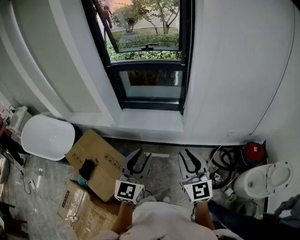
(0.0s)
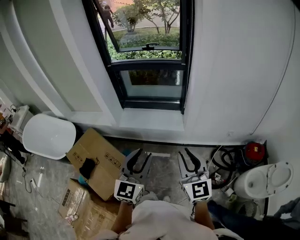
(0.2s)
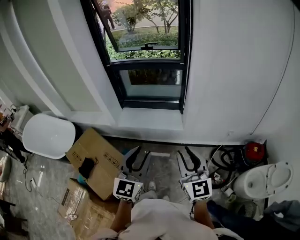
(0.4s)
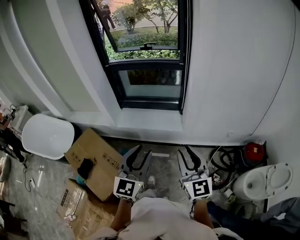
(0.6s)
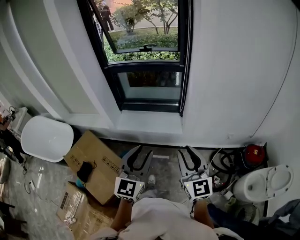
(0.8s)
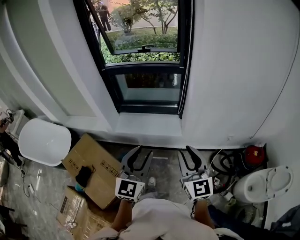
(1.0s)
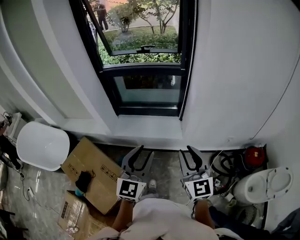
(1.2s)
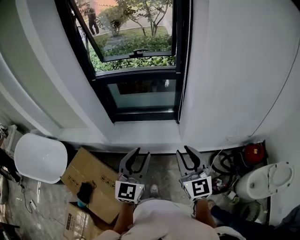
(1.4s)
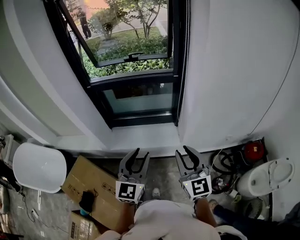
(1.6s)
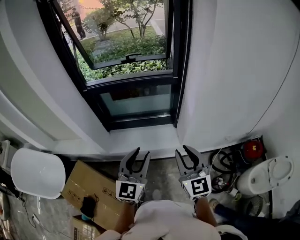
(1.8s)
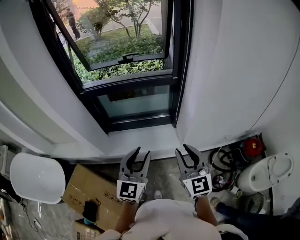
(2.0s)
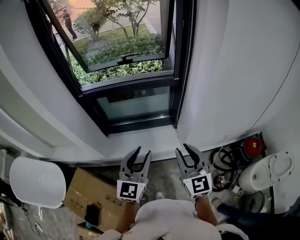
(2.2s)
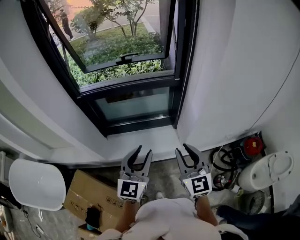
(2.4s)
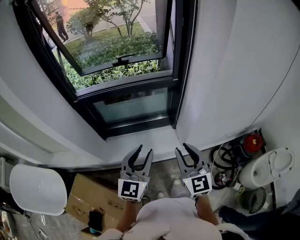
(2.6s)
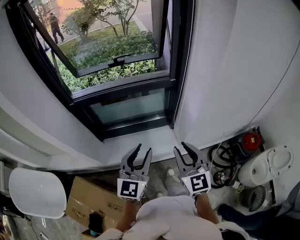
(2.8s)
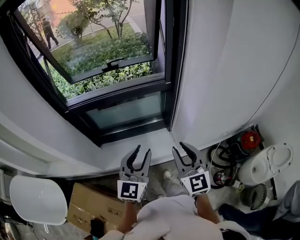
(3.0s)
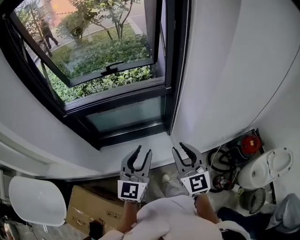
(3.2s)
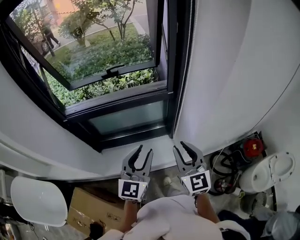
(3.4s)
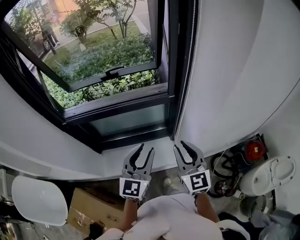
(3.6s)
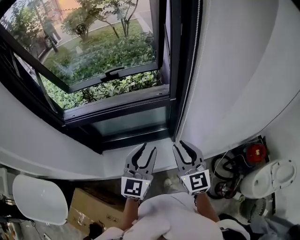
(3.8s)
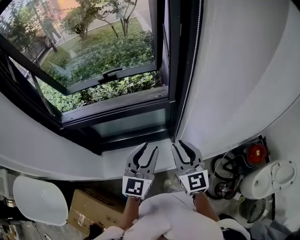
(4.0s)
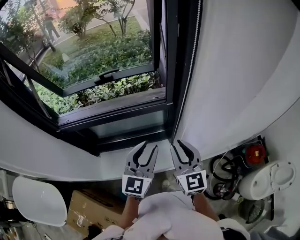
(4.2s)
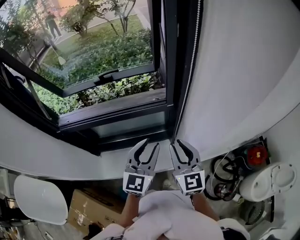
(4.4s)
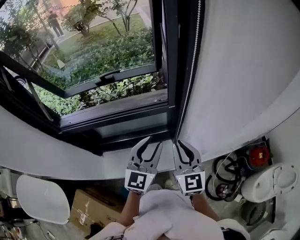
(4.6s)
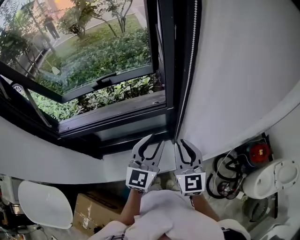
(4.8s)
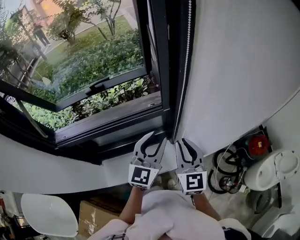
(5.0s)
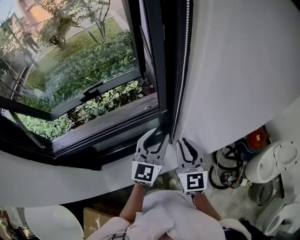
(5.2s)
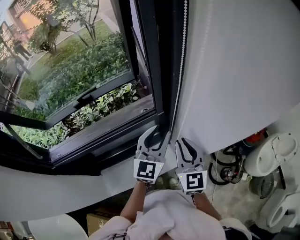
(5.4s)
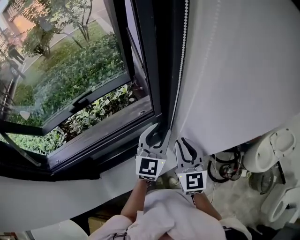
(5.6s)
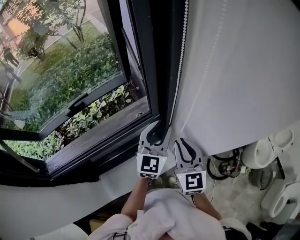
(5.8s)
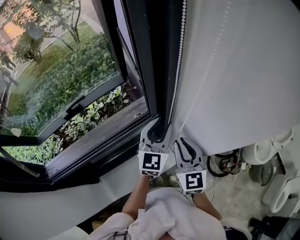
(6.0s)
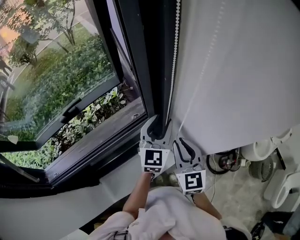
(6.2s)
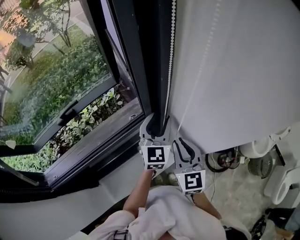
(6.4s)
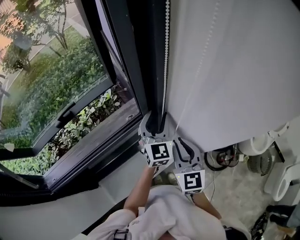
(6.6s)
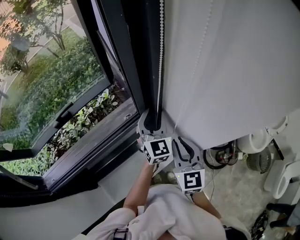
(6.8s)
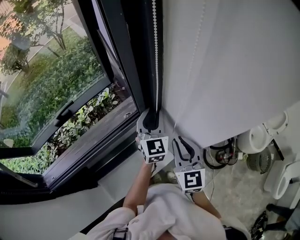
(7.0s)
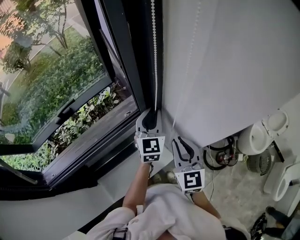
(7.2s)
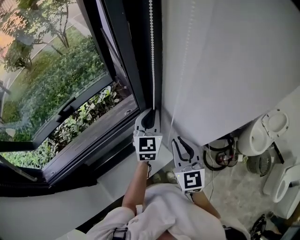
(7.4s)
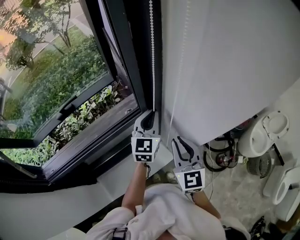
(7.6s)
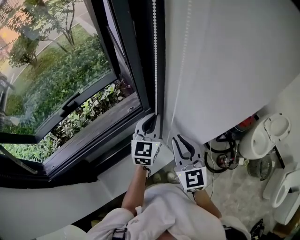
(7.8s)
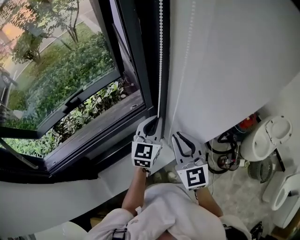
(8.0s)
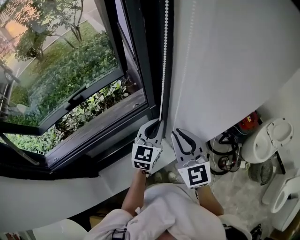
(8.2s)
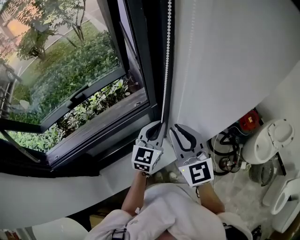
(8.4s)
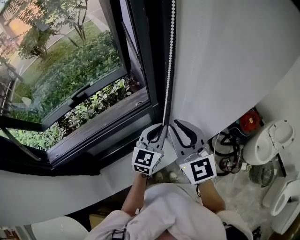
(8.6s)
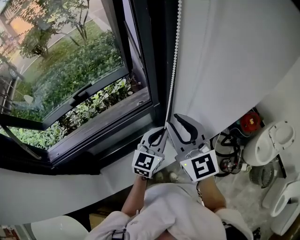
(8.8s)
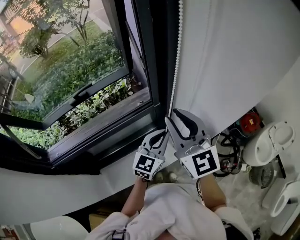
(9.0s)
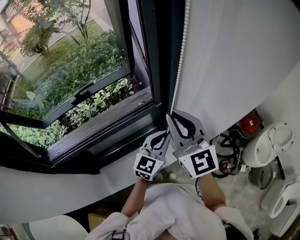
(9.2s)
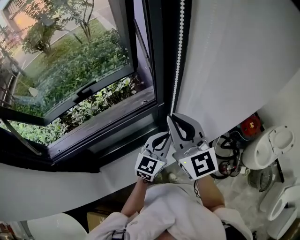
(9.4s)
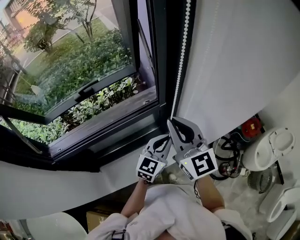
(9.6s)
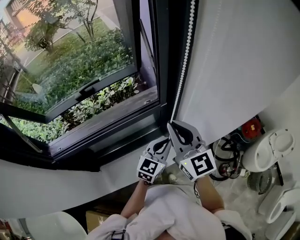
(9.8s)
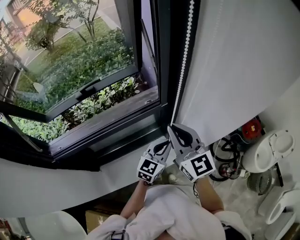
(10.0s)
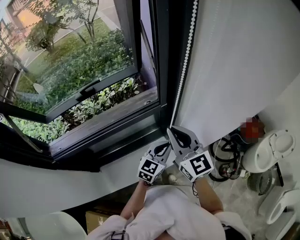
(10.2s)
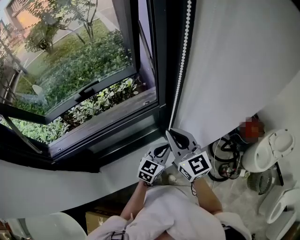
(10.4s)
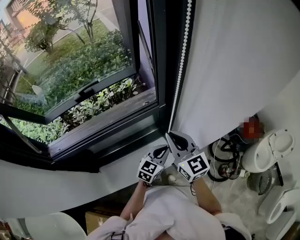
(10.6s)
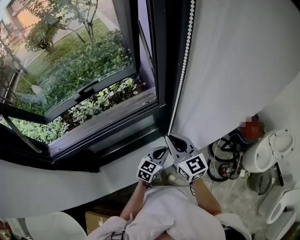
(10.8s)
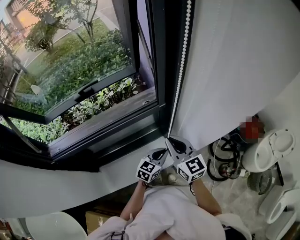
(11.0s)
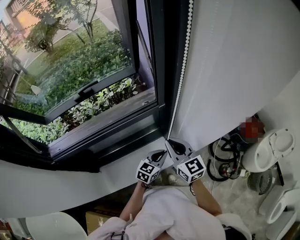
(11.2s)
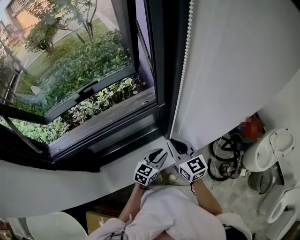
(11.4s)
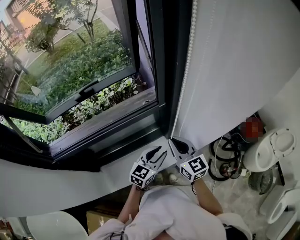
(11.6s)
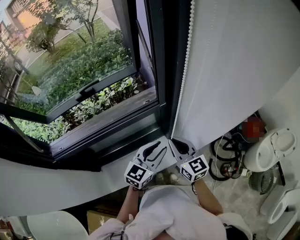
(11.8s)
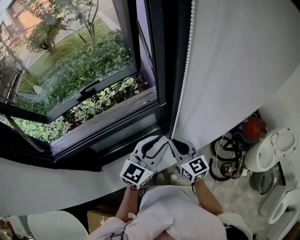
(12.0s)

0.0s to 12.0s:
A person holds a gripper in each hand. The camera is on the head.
0.0s to 1.6s: The two grippers go roughly 20 cm forward.
1.6s to 3.0s: Both grippers travel together forward, about 15 cm.
3.0s to 4.4s: The grippers both shift forward by some 20 cm.
4.4s to 6.0s: The left gripper shifts approximately 15 cm forward, and turns by some 20 degrees, while the right gripper travels forward by some 5 cm, and turns by roughly 30 degrees.
6.0s to 7.6s: The left gripper closes its fingers.
7.6s to 9.0s: The left gripper is displaced backward by approximately 10 cm; the right gripper heads upward and to the left, covering roughly 15 cm, and rotates some 20 degrees.
9.0s to 10.4s: Both grippers move downward, some 10 cm. The right gripper closes its fingers.
10.4s to 12.0s: The left gripper is displaced upward by approximately 15 cm, and opens up. Meanwhile the right gripper heads downward, covering about 10 cm.

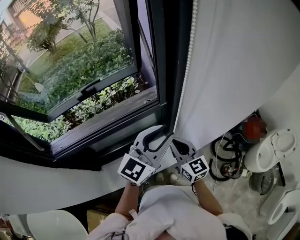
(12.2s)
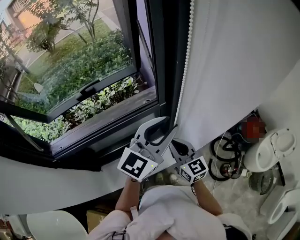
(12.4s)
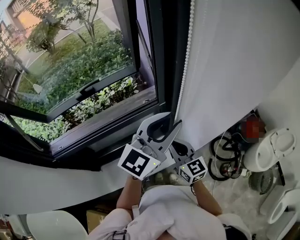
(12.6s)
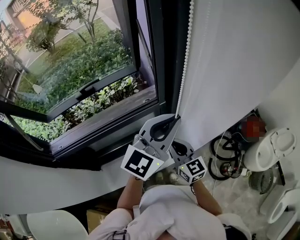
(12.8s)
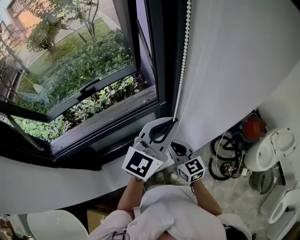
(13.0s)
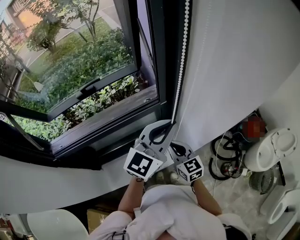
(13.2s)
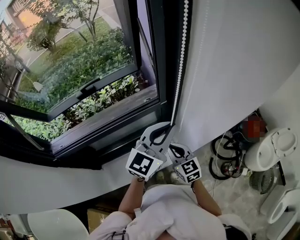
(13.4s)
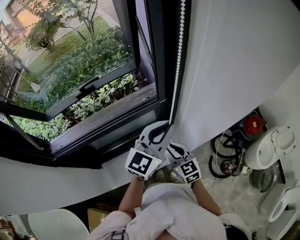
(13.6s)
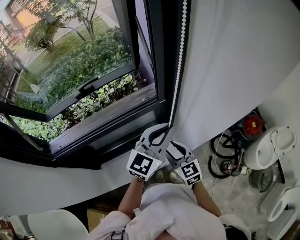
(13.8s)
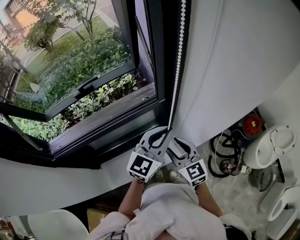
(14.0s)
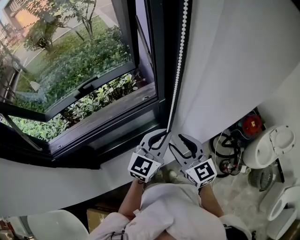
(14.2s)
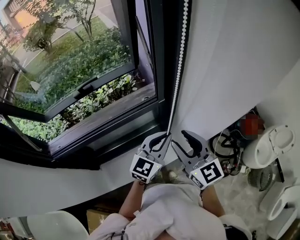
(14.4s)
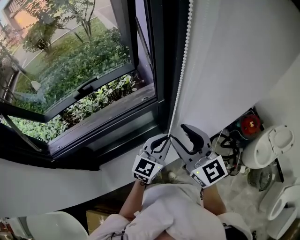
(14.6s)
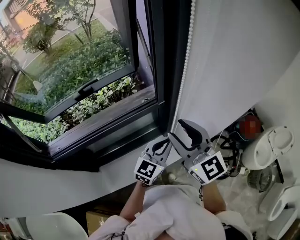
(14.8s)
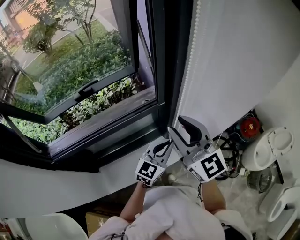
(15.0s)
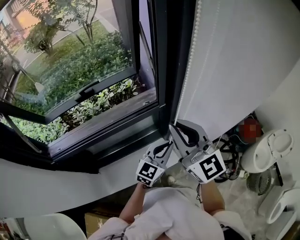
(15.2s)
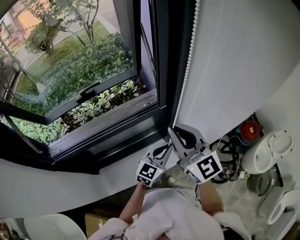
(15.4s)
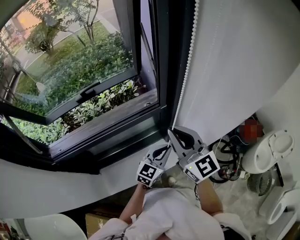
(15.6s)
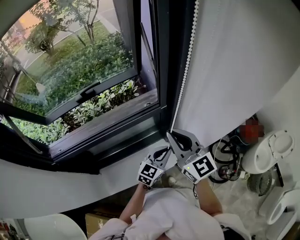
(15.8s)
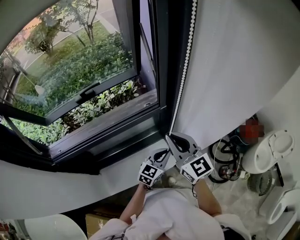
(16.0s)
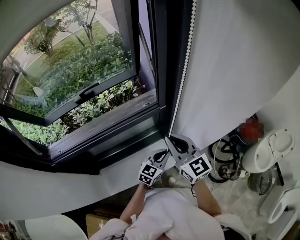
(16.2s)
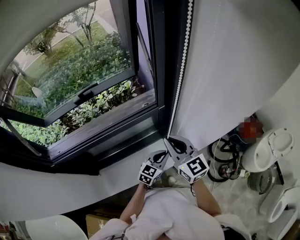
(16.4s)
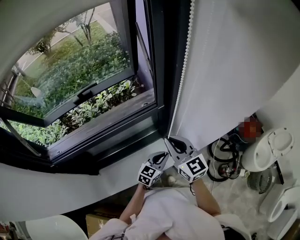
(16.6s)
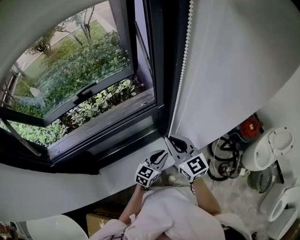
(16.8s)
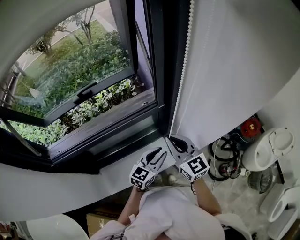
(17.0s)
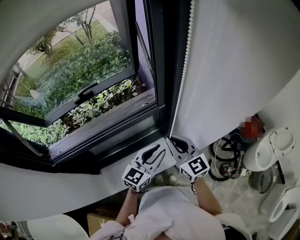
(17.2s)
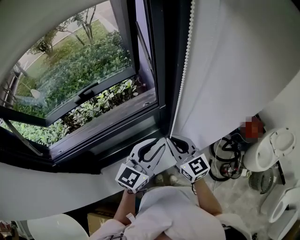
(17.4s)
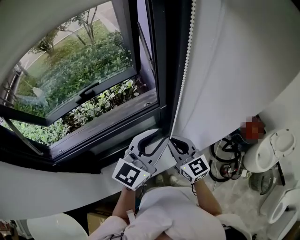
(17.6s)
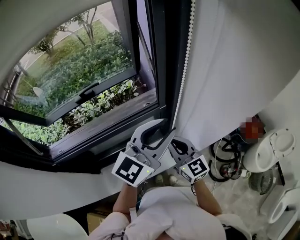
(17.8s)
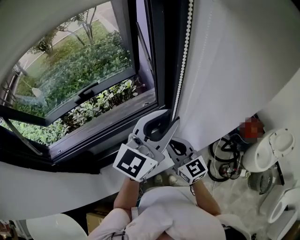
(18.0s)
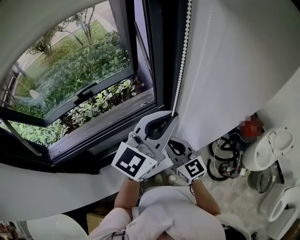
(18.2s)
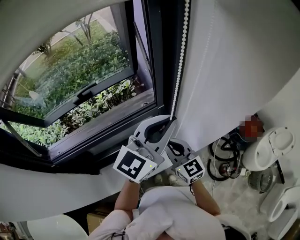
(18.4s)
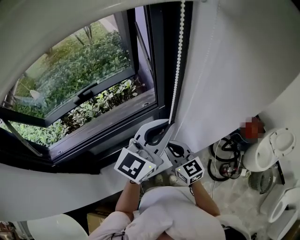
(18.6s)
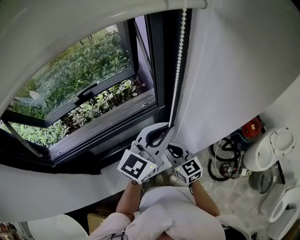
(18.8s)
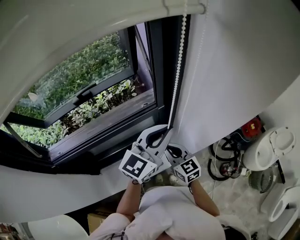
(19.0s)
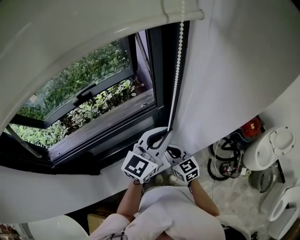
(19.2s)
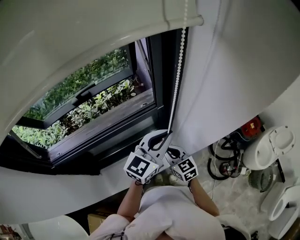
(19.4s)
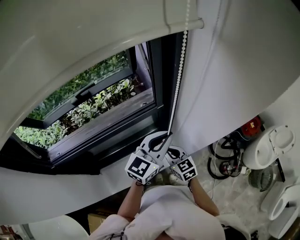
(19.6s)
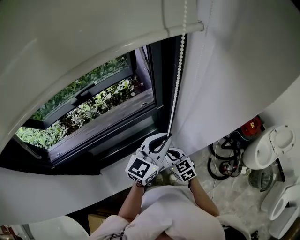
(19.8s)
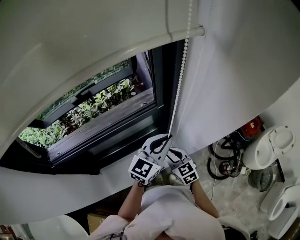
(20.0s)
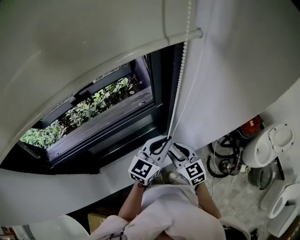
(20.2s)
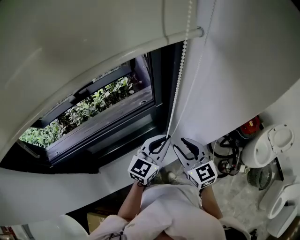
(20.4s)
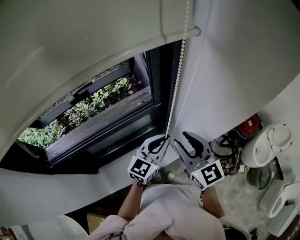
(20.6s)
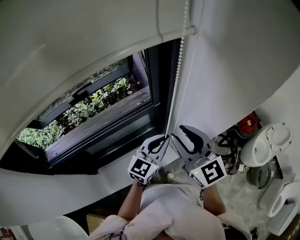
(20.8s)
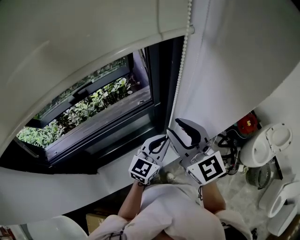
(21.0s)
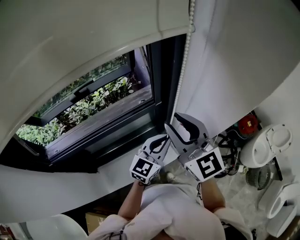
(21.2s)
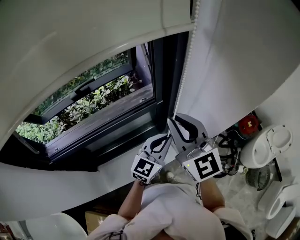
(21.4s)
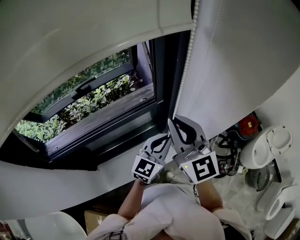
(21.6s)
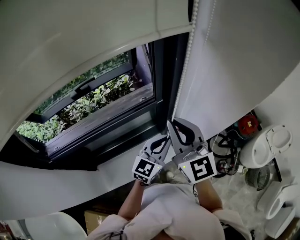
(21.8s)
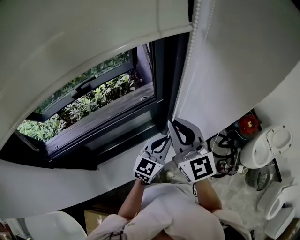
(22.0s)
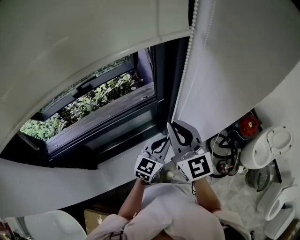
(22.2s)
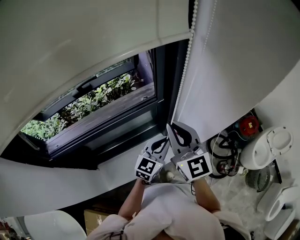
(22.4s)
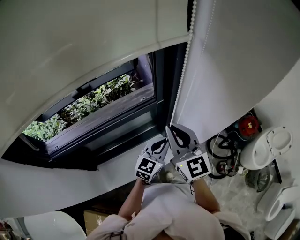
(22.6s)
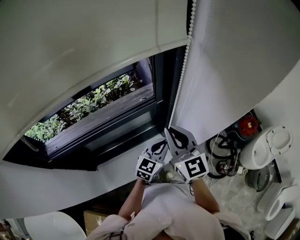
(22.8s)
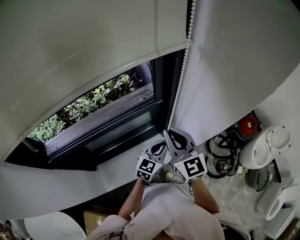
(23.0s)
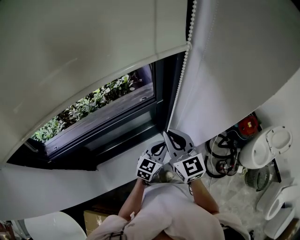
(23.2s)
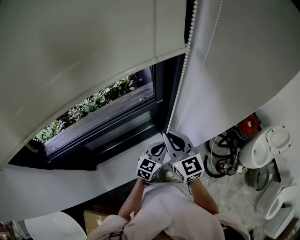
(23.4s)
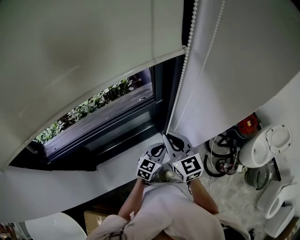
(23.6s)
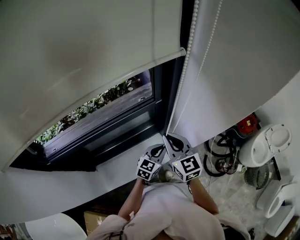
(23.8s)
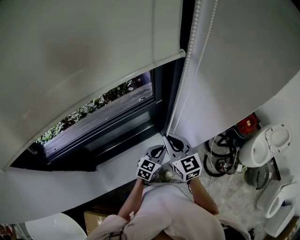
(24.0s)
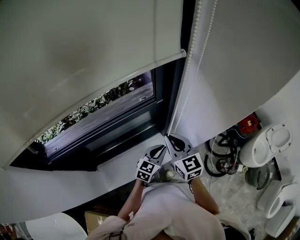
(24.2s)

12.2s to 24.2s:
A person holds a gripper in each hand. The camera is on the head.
12.2s to 13.8s: The right gripper shifts by some 5 cm, and opens up. Meanwhile the left gripper travels upward and back again, some 5 cm each way, and closes its fingers.
13.8s to 15.2s: The right gripper travels upward by roughly 25 cm, rotates approximately 30 degrees, and closes up. The left gripper shifts about 10 cm downward.
15.2s to 16.6s: The grippers both shift downward by some 15 cm.
16.6s to 18.2s: The left gripper shifts about 35 cm upward, points its fingers about 30 degrees further upward, and opens and closes again.
18.2s to 19.8s: The grippers both shift downward by approximately 15 cm. The right gripper swivels some 30 degrees.
19.8s to 21.2s: The right gripper heads upward, covering approximately 30 cm, tips its fingers upward by about 30 degrees, and opens its fingers.
21.2s to 22.6s: The grippers both shift downward by about 5 cm. The right gripper closes its fingers.
22.6s to 24.2s: The two grippers go approximately 10 cm downward.
